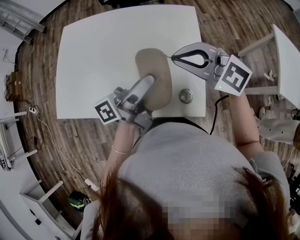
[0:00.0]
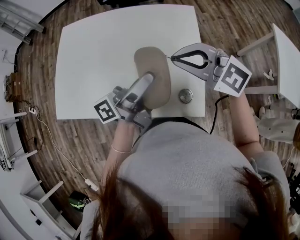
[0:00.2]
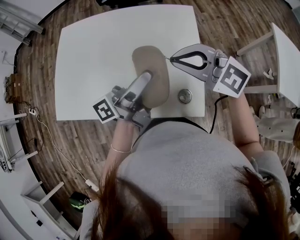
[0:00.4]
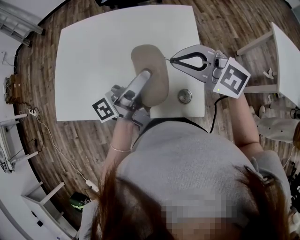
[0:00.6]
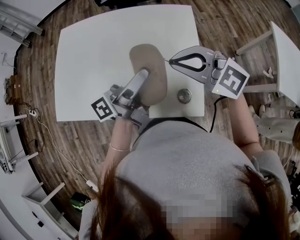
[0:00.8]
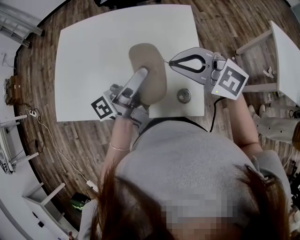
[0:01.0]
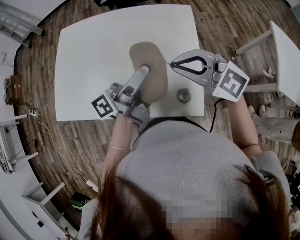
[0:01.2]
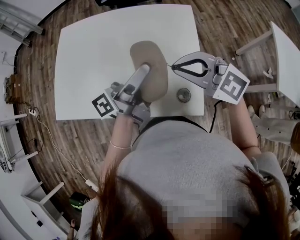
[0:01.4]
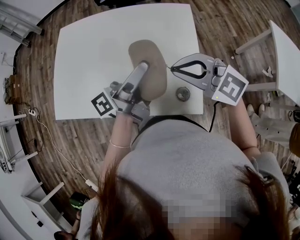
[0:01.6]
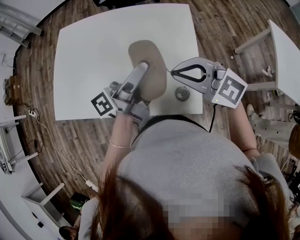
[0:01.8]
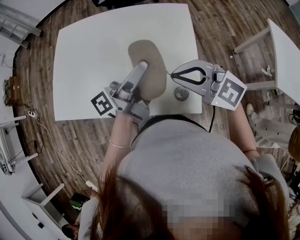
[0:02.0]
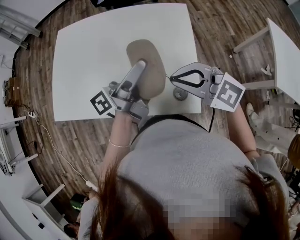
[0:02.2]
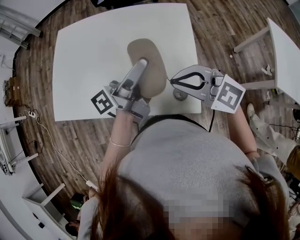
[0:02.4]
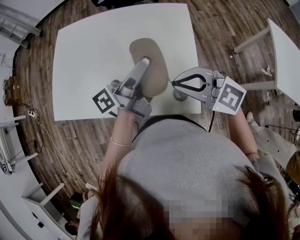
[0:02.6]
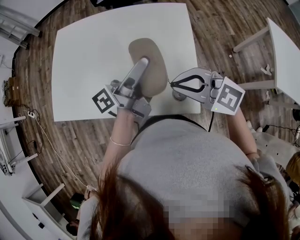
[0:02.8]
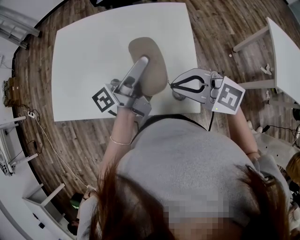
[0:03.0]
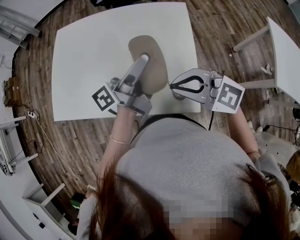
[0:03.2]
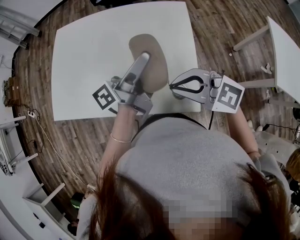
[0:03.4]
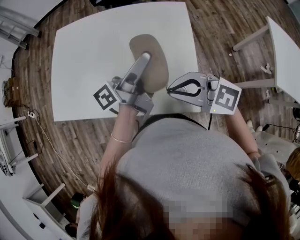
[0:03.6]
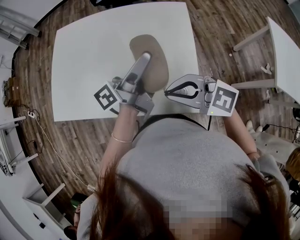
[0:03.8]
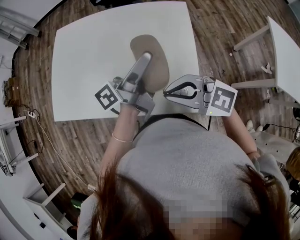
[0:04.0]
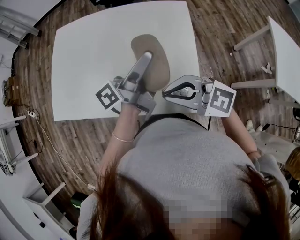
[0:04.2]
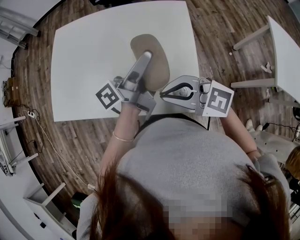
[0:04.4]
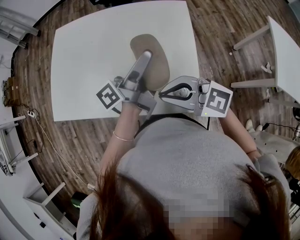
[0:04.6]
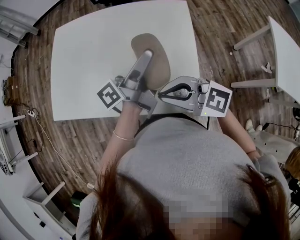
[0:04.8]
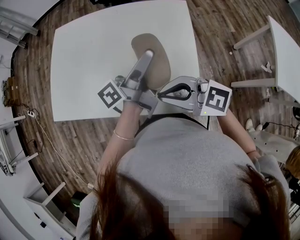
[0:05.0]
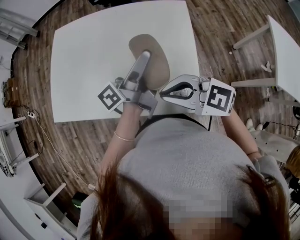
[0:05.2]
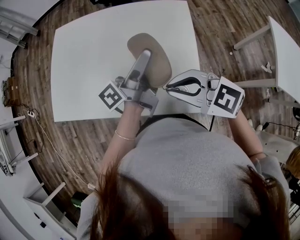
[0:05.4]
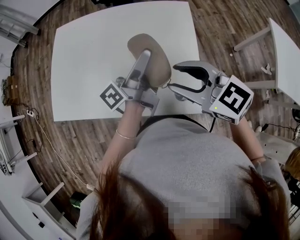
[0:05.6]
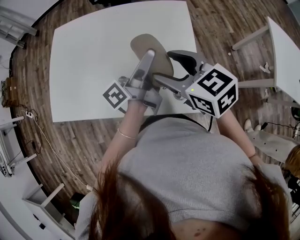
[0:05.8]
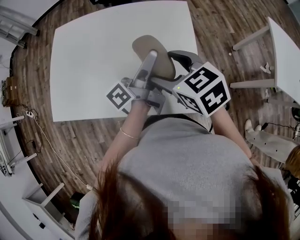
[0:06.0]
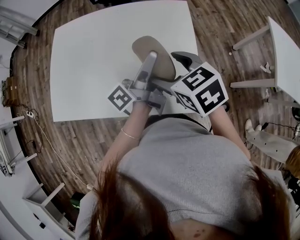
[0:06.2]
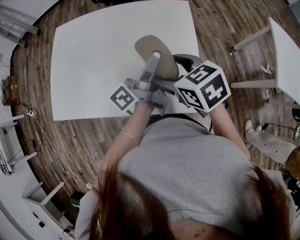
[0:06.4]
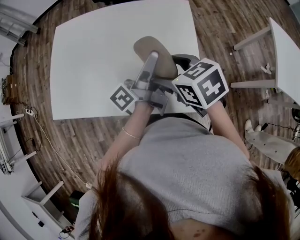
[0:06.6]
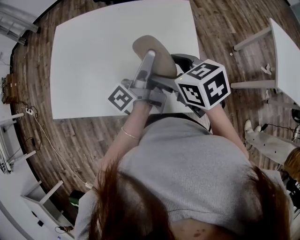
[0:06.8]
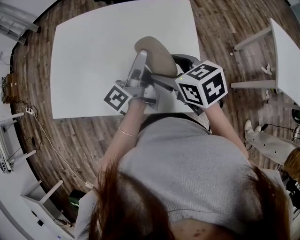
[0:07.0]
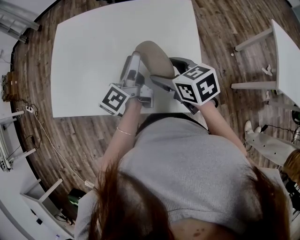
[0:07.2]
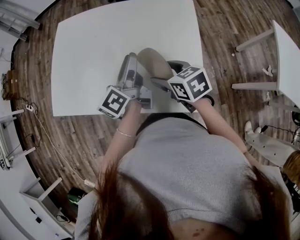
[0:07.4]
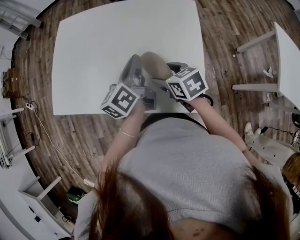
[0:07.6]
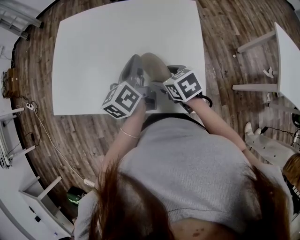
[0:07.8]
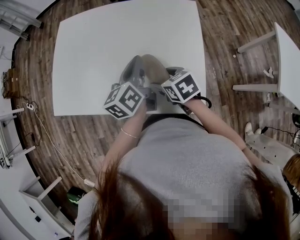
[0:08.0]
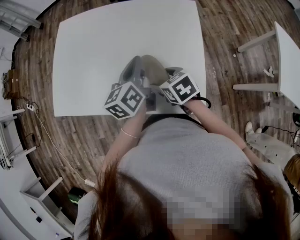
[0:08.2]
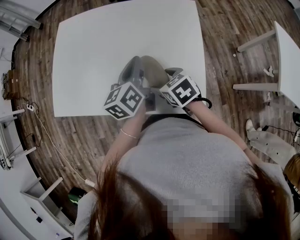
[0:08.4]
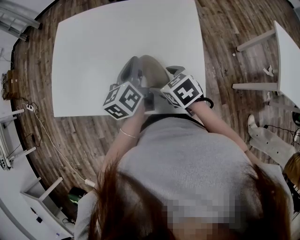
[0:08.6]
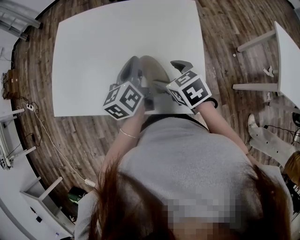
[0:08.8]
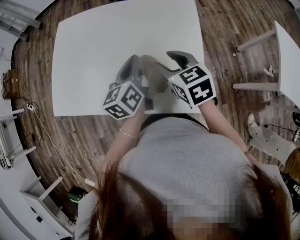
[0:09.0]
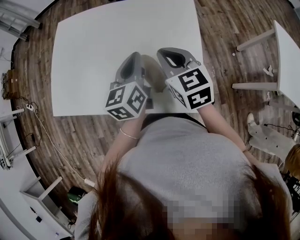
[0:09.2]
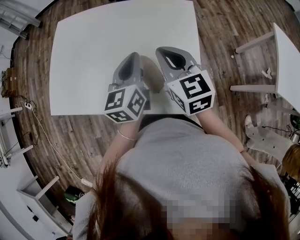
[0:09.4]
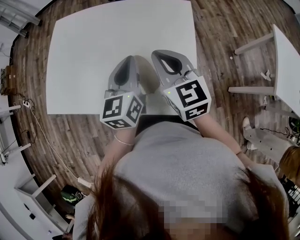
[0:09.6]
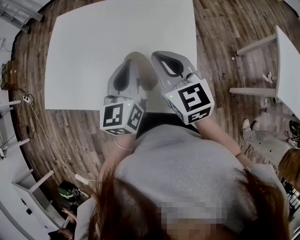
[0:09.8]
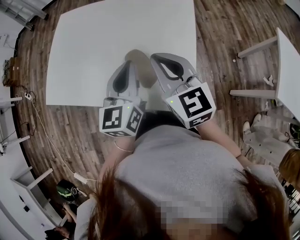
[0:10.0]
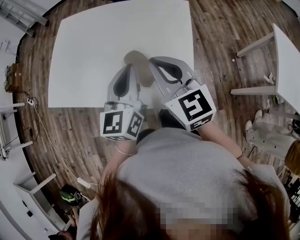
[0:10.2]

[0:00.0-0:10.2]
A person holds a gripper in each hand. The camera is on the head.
0:00.0 to 0:01.4: The grippers move only a little.
0:01.4 to 0:03.0: The right gripper shifts approximately 5 cm backward.
0:03.0 to 0:04.4: The grippers move only a little.
0:04.4 to 0:05.8: The right gripper heads forward, covering roughly 10 cm, rotates roughly 40 degrees, and opens.
0:05.8 to 0:07.2: The right gripper travels downward by some 10 cm. The left gripper travels to the left by roughly 5 cm, and changes its angle by approximately 30 degrees.
0:07.2 to 0:08.8: The left gripper swivels roughly 30 degrees, and closes up.
0:08.8 to 0:10.2: The right gripper is displaced upward by about 15 cm, tips its fingers upward by approximately 40 degrees, and closes up; the left gripper goes some 10 cm backward and upward, and rotates approximately 30 degrees.

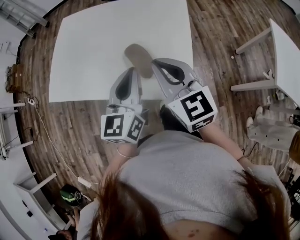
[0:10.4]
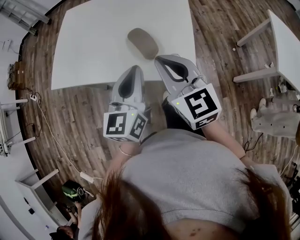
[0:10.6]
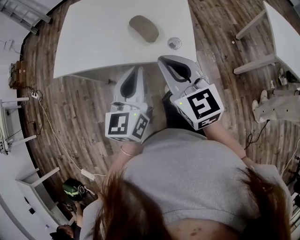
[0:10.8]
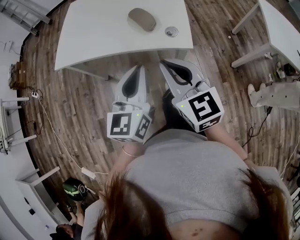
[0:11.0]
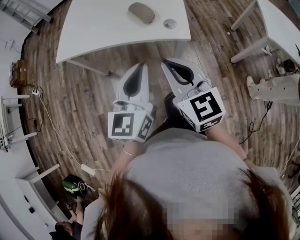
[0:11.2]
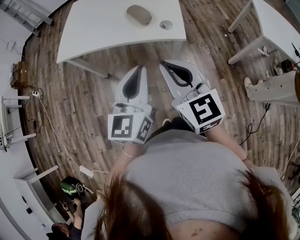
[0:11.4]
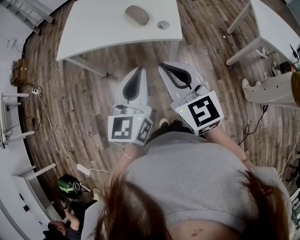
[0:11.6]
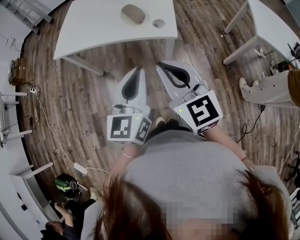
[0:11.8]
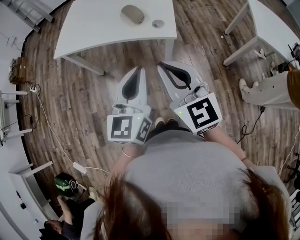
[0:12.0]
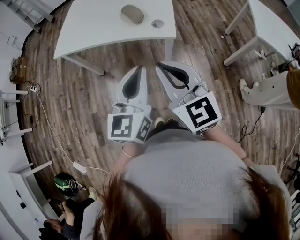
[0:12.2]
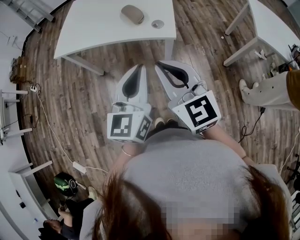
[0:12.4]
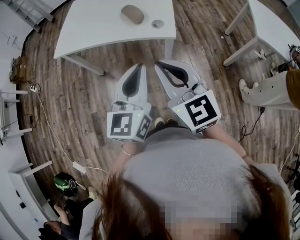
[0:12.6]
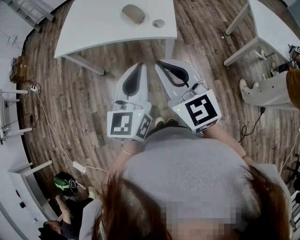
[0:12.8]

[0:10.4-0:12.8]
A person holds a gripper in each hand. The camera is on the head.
0:10.4 to 0:11.6: The two grippers go about 30 cm backward.
0:11.6 to 0:12.8: The grippers move only a little.

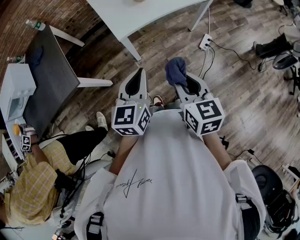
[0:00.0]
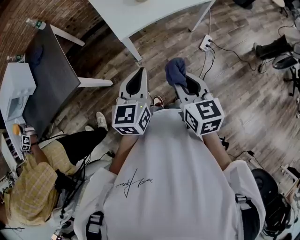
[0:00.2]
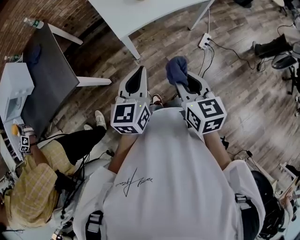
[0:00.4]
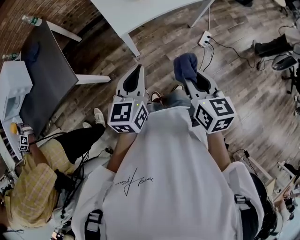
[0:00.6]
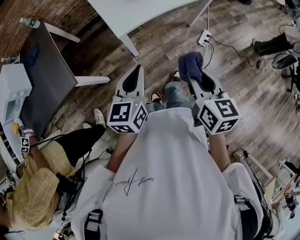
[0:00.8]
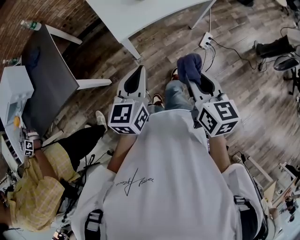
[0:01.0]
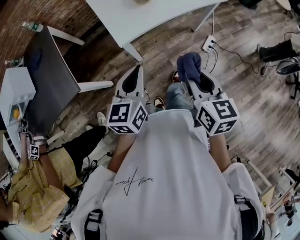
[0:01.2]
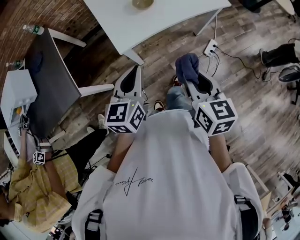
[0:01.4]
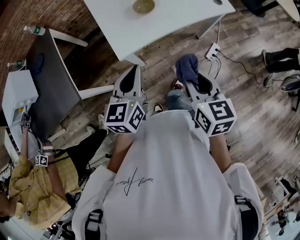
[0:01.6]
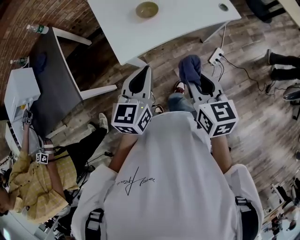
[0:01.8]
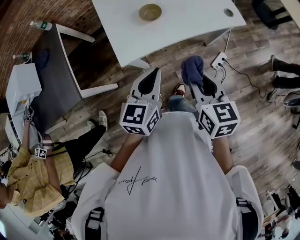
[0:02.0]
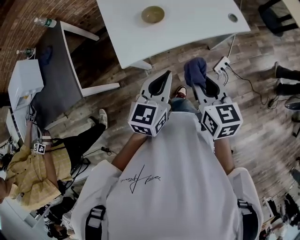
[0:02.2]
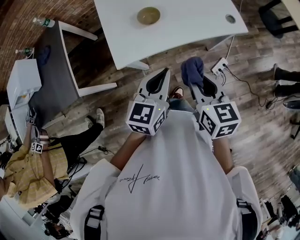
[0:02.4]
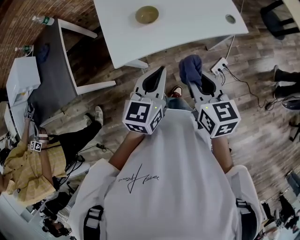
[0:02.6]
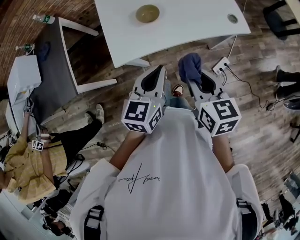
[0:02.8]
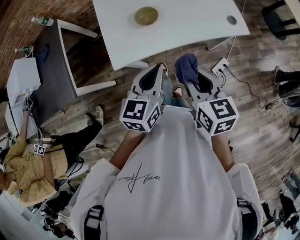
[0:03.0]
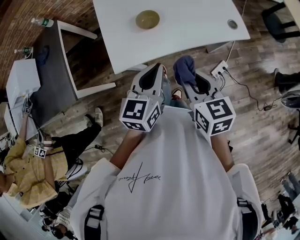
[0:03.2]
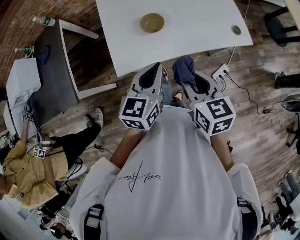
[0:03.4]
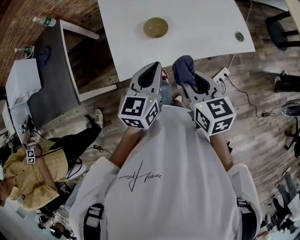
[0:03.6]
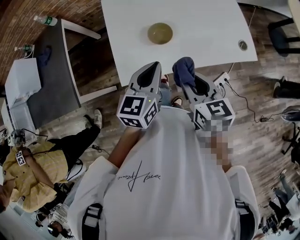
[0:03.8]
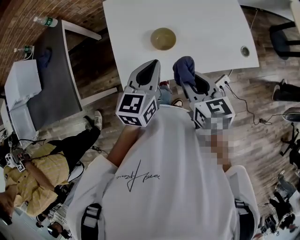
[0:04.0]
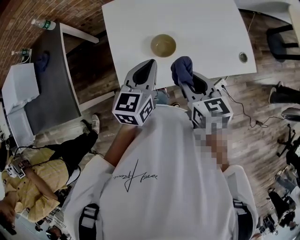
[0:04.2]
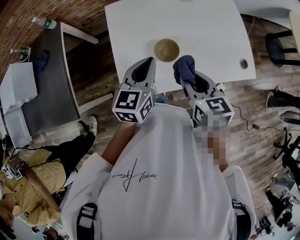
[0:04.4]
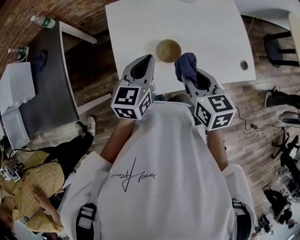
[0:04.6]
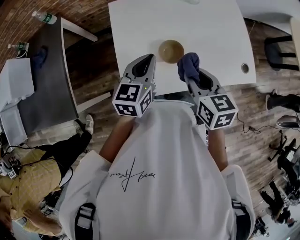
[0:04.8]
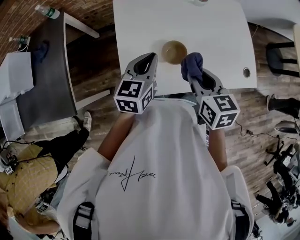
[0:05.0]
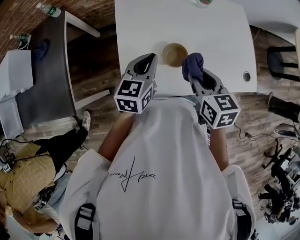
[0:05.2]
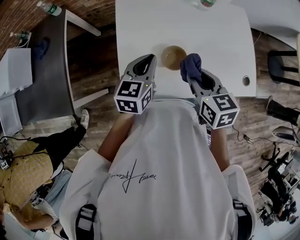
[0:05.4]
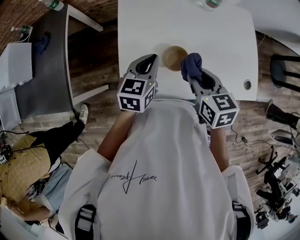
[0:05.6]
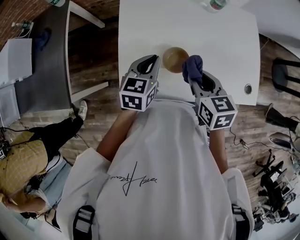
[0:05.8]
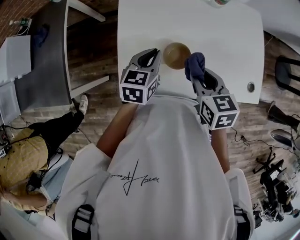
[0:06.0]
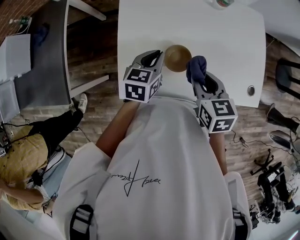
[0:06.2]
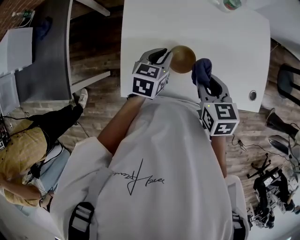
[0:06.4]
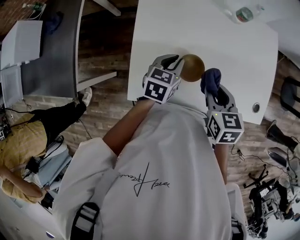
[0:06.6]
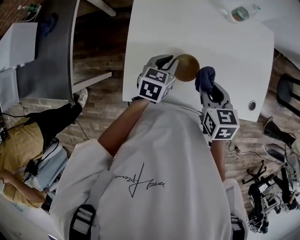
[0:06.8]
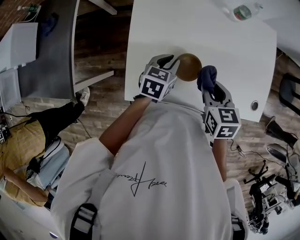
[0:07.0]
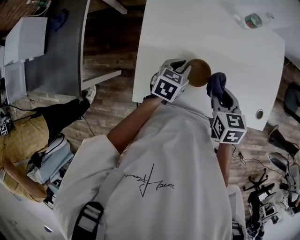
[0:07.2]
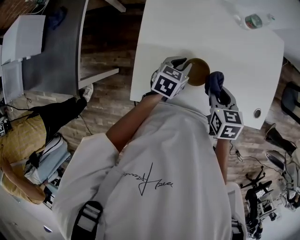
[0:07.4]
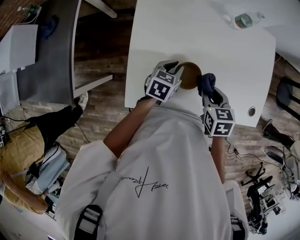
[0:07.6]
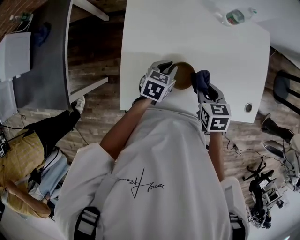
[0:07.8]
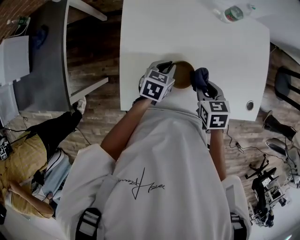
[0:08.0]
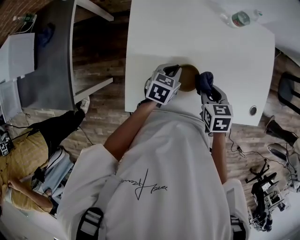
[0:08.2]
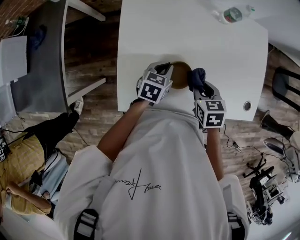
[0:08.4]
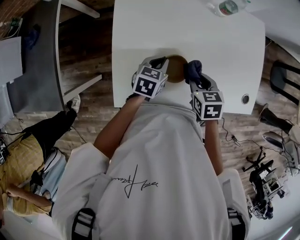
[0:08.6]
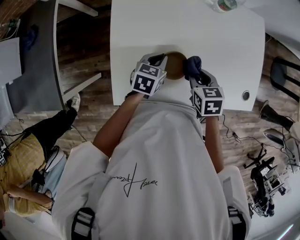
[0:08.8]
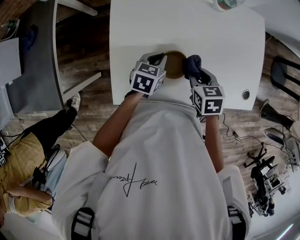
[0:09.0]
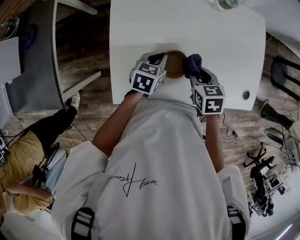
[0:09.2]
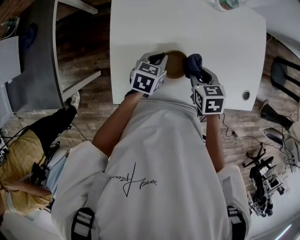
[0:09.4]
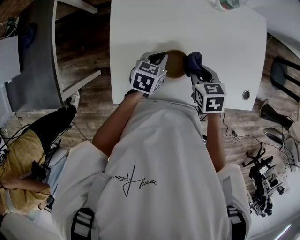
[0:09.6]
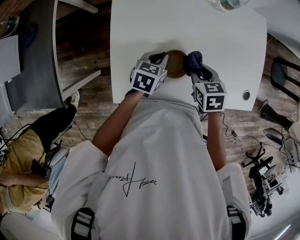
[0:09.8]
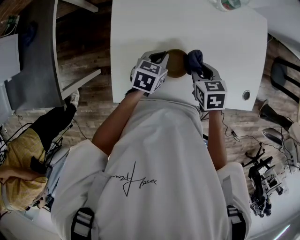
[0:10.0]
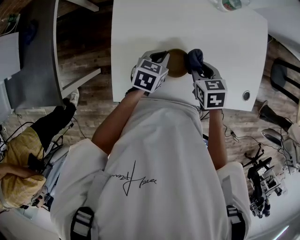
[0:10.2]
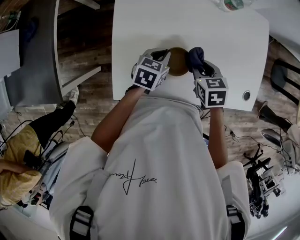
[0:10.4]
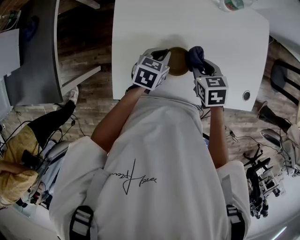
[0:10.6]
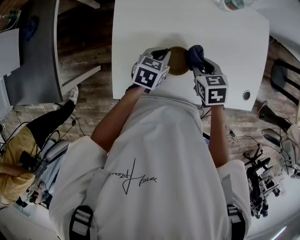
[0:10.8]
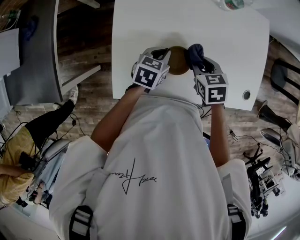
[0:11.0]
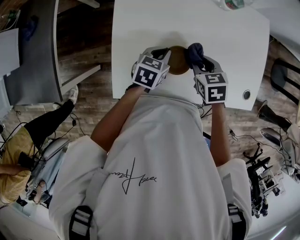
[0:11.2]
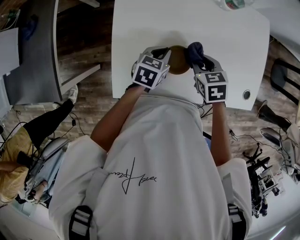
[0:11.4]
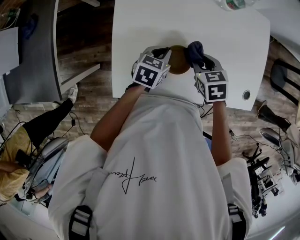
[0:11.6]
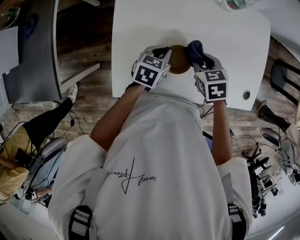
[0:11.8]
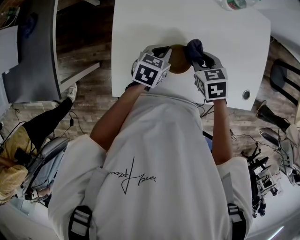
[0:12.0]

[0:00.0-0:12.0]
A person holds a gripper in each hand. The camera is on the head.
0:00.0 to 0:01.6: Both grippers move forward, about 15 cm.
0:01.6 to 0:03.0: The left gripper goes about 15 cm to the right and forward. Meanwhile the right gripper goes approximately 15 cm forward and to the right.
0:03.0 to 0:04.4: The right gripper travels forward by approximately 20 cm. Meanwhile the left gripper moves forward and to the left, some 25 cm.
0:04.4 to 0:06.0: The left gripper is displaced downward and forward by some 10 cm, while the right gripper heads forward and downward, covering some 10 cm.
0:06.0 to 0:07.6: Both grippers travel together downward, roughly 10 cm.
0:07.6 to 0:12.0: The grippers make only small movements.
